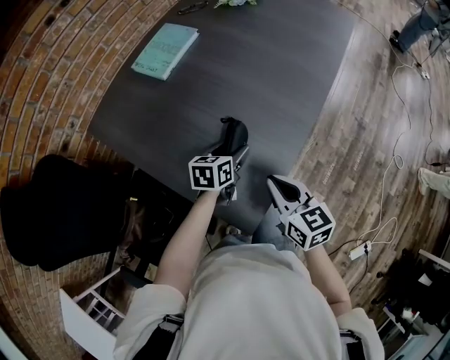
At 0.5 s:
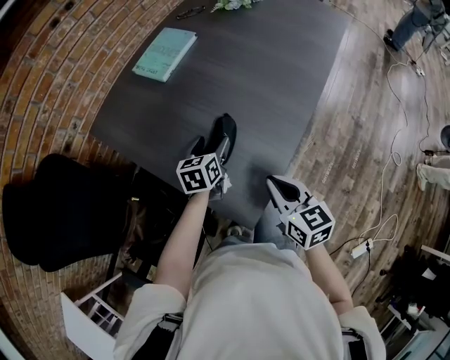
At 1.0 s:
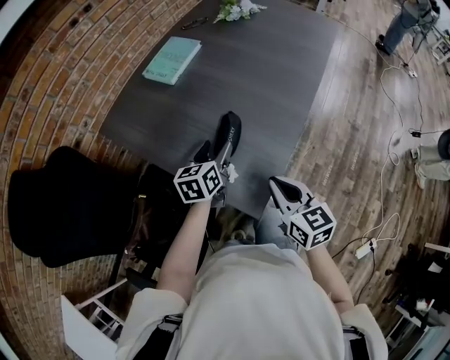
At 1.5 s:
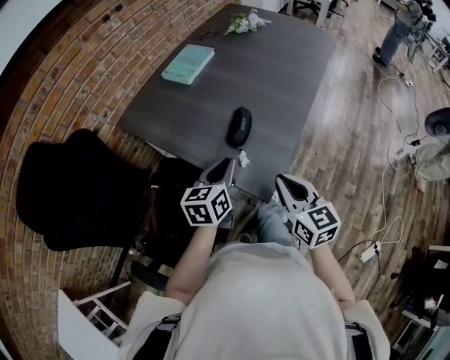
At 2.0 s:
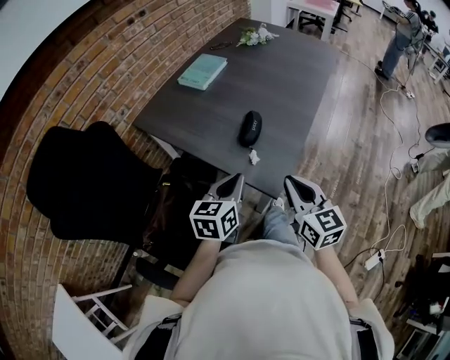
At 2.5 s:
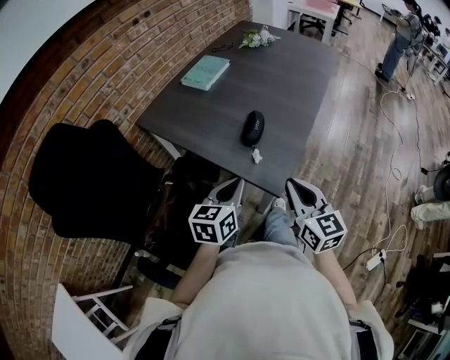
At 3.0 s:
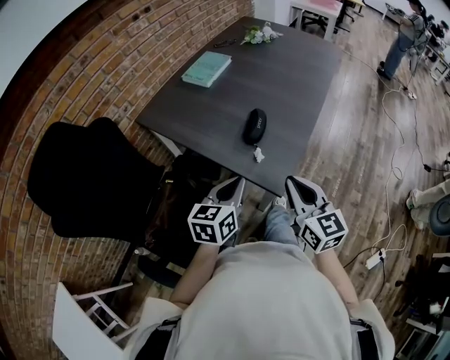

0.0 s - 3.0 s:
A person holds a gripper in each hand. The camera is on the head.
0.0 s - 1.5 s: The left gripper shifts approximately 25 cm backward, upward and to the left, swivels some 20 degrees, and closes its fingers; the right gripper is displaced backward and upward by some 15 cm.
1.5 s - 3.0 s: The right gripper shifts some 5 cm backward. The left gripper goes approximately 10 cm backward.

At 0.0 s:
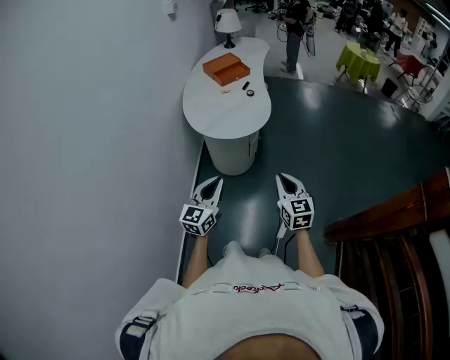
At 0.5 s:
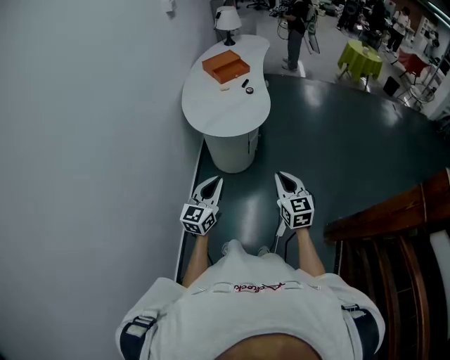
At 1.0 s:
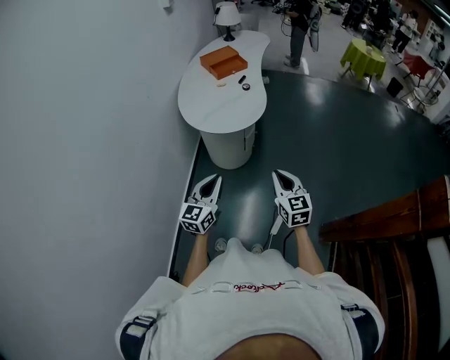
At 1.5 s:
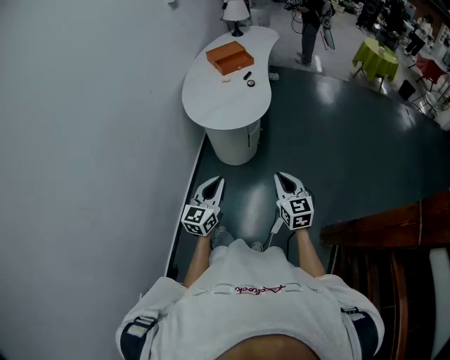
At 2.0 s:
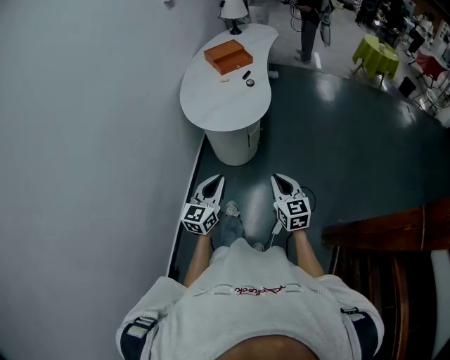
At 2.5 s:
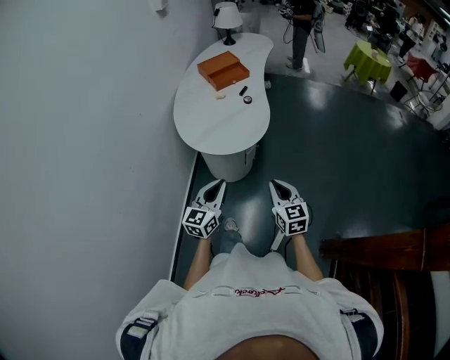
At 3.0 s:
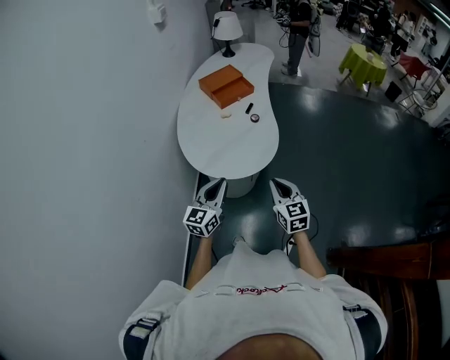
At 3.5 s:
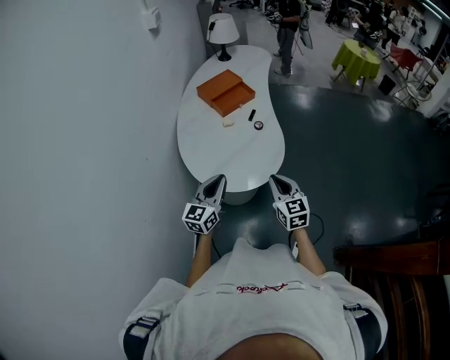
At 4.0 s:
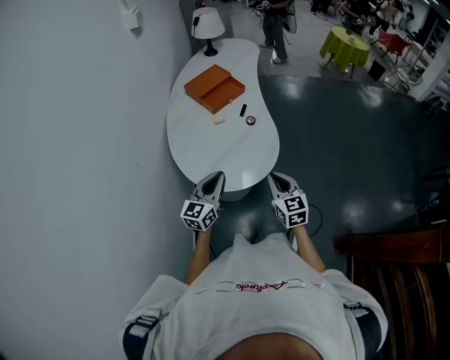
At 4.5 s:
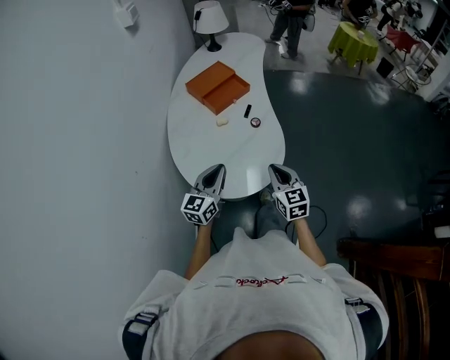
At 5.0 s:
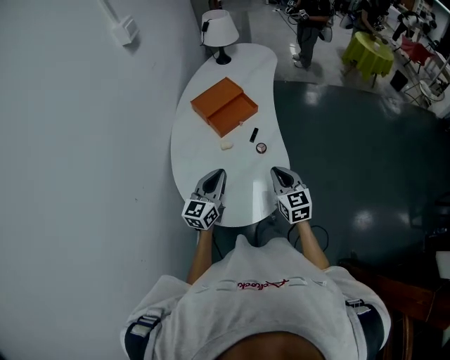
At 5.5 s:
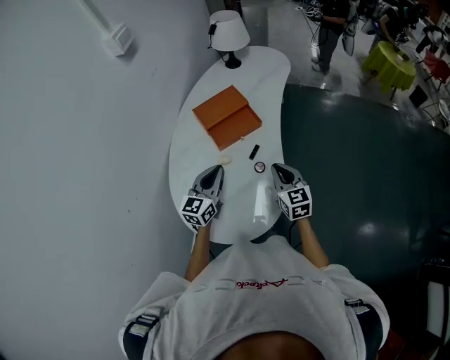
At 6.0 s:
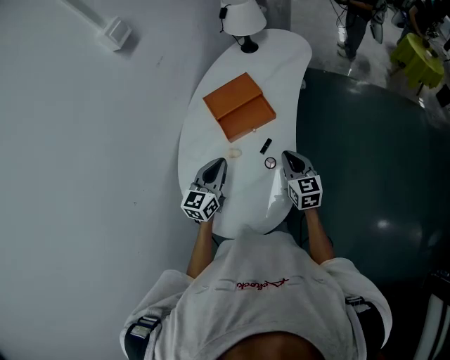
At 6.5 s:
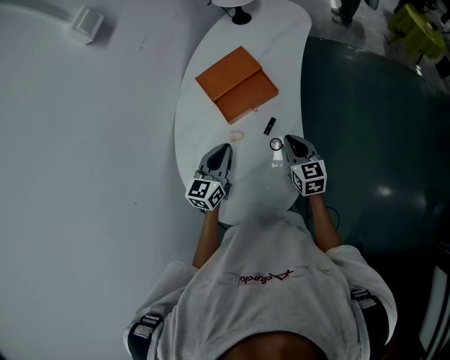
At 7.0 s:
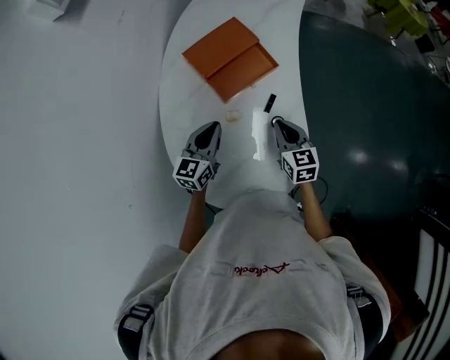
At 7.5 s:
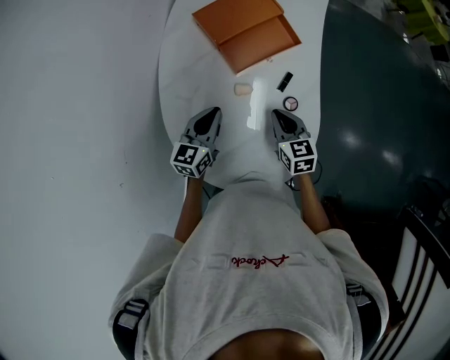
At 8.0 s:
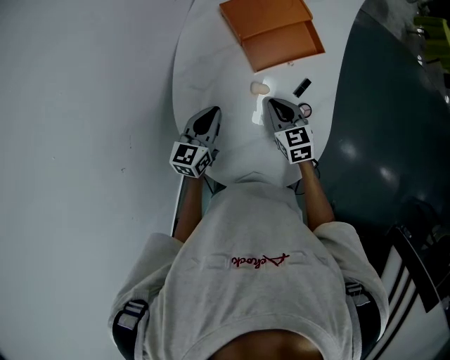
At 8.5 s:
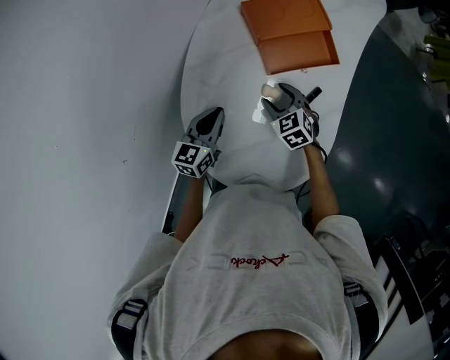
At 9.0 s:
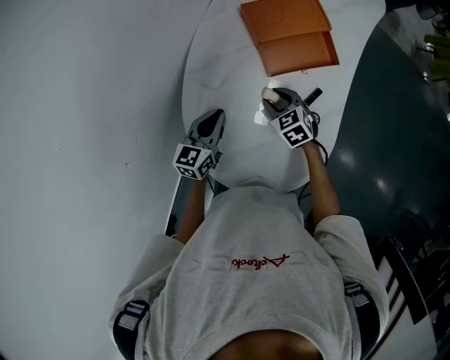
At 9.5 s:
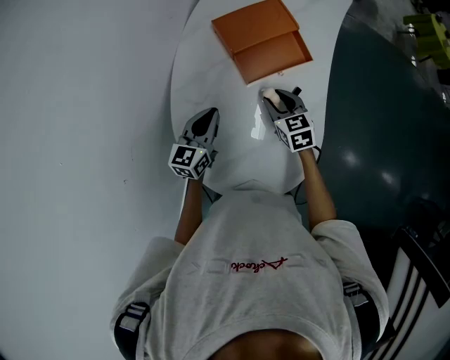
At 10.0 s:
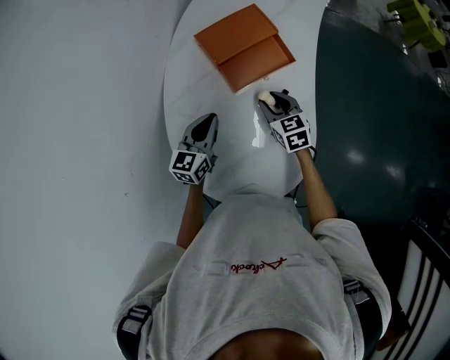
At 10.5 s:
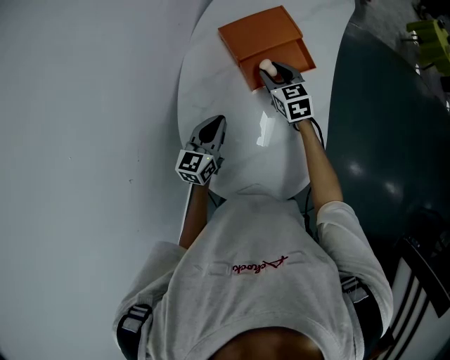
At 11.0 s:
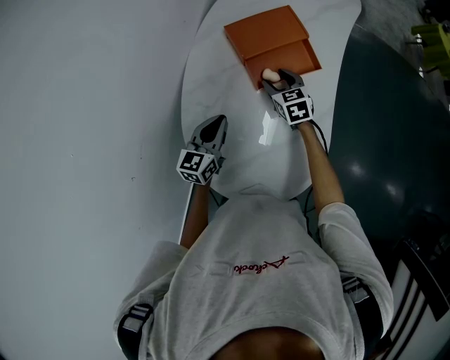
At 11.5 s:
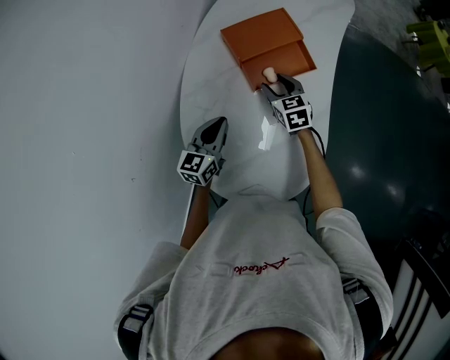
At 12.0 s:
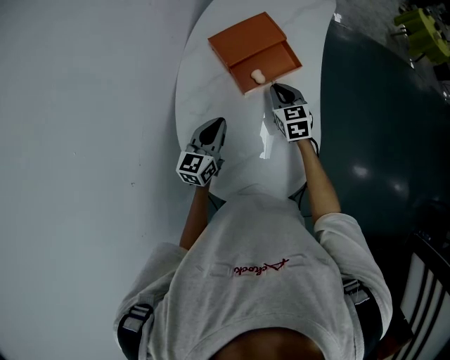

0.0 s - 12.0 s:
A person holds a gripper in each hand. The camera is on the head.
0.0 s - 2.0 s: Both grippers move to the right, about 5 cm.
2.0 s - 4.0 s: Both grippers travel together forward and to the left, about 35 cm.
4.0 s - 6.0 s: Both grippers move forward, about 35 cm. The left gripper swivels approximately 20 degrees.
6.0 s - 8.0 s: The left gripper travels downward and to the left by roughly 20 cm, while the right gripper moves to the left and downward, about 25 cm, and turns by roughly 20 degrees.
8.0 s - 10.0 s: The right gripper shifts approximately 5 cm to the right, and opens up; the left gripper ends up some 5 cm from where it was.
10.0 s - 12.0 s: The right gripper closes up.

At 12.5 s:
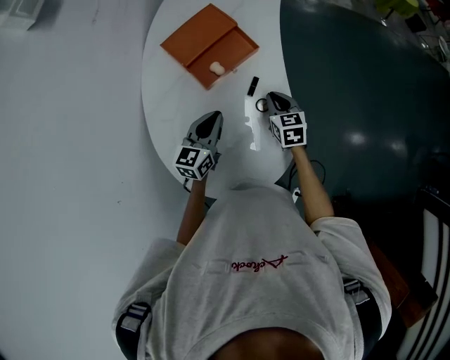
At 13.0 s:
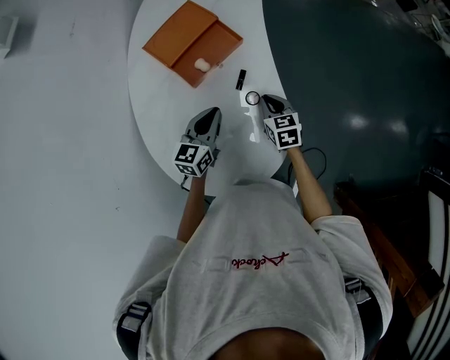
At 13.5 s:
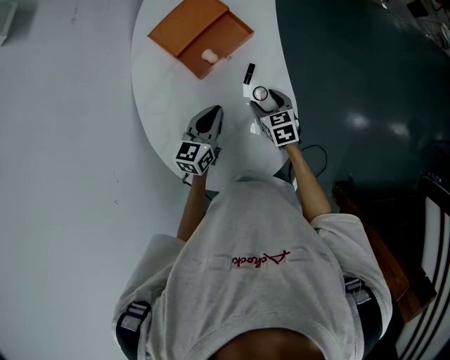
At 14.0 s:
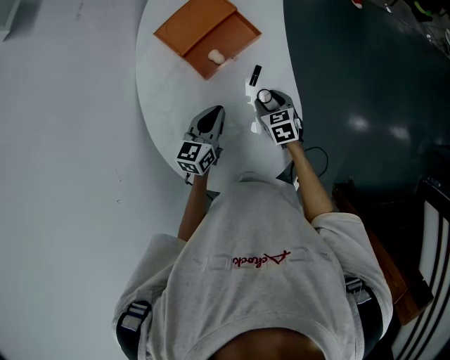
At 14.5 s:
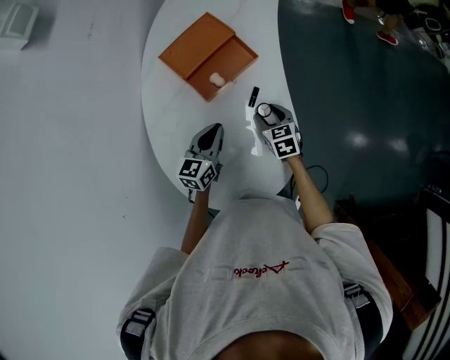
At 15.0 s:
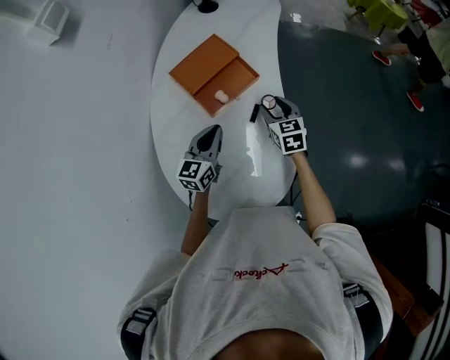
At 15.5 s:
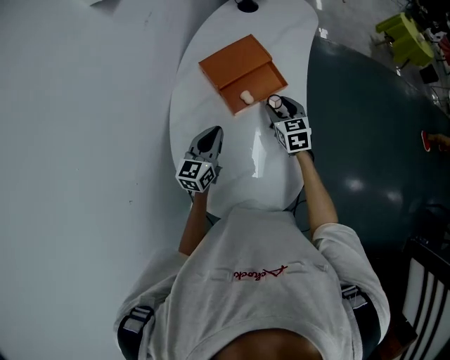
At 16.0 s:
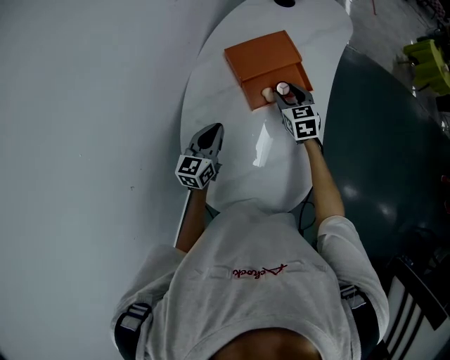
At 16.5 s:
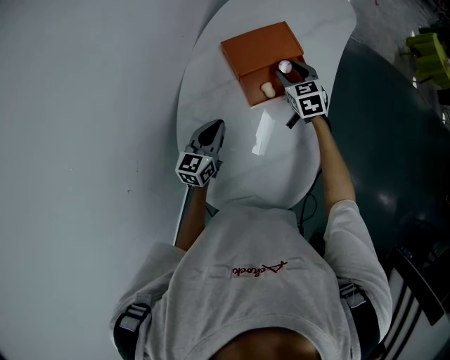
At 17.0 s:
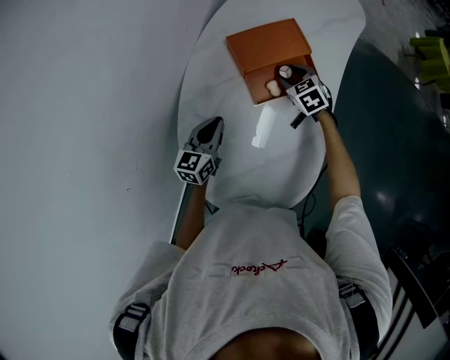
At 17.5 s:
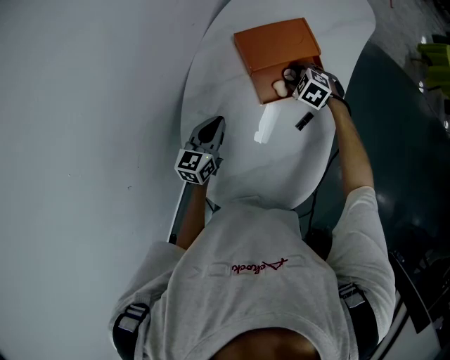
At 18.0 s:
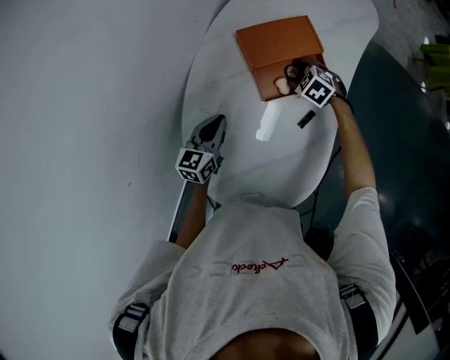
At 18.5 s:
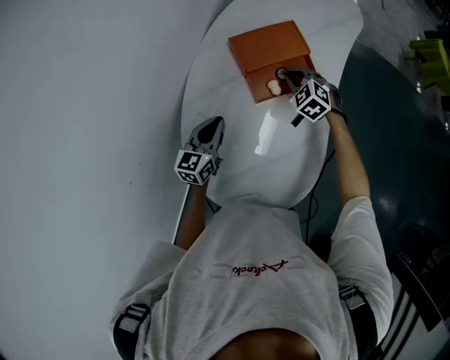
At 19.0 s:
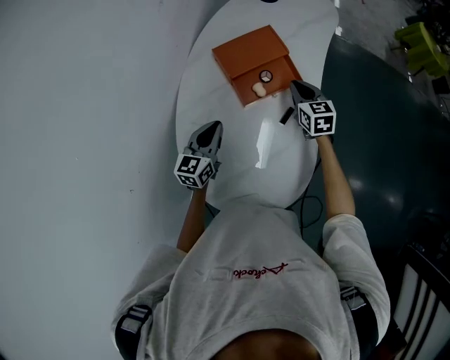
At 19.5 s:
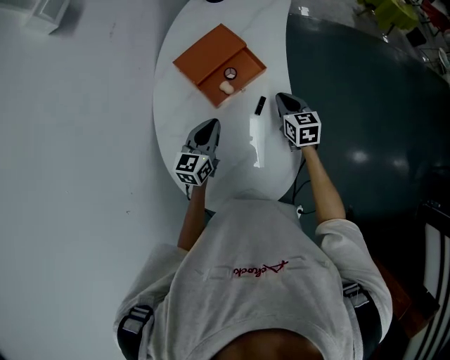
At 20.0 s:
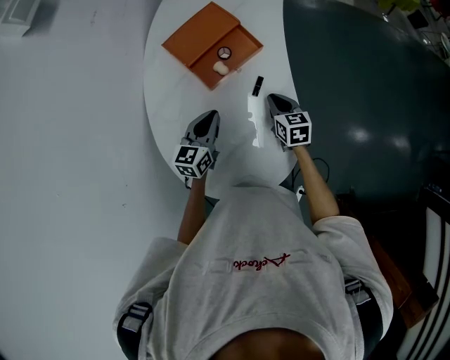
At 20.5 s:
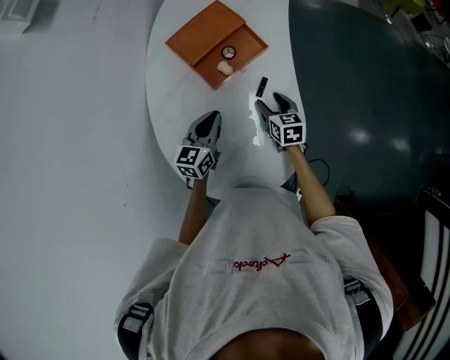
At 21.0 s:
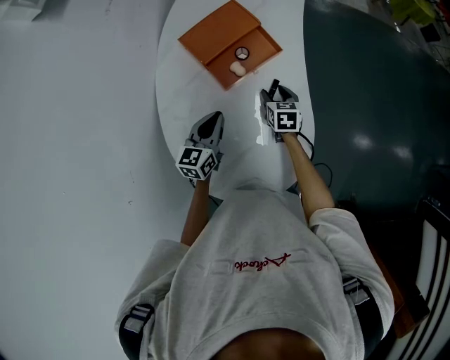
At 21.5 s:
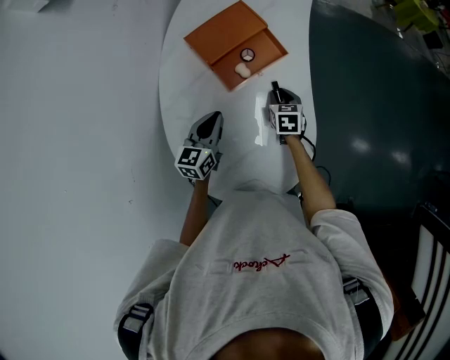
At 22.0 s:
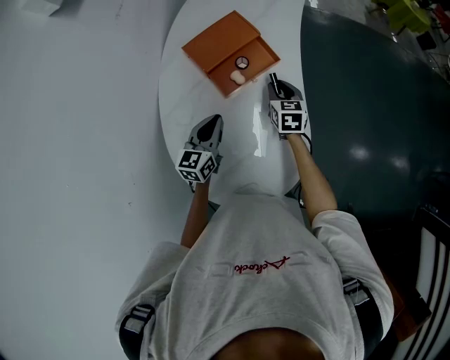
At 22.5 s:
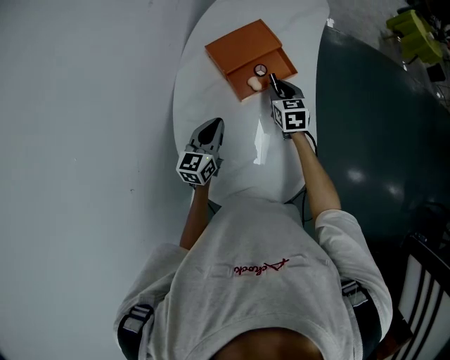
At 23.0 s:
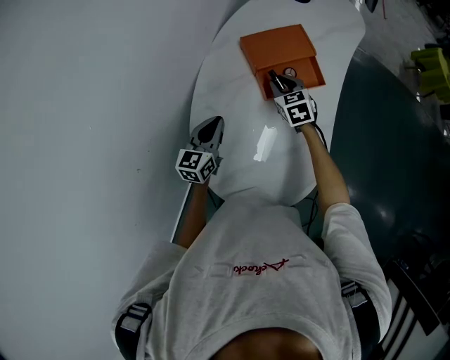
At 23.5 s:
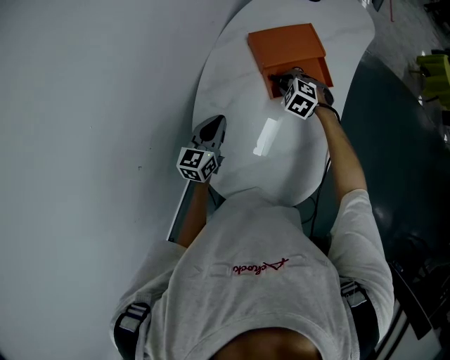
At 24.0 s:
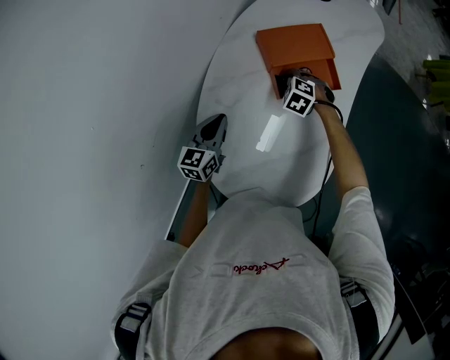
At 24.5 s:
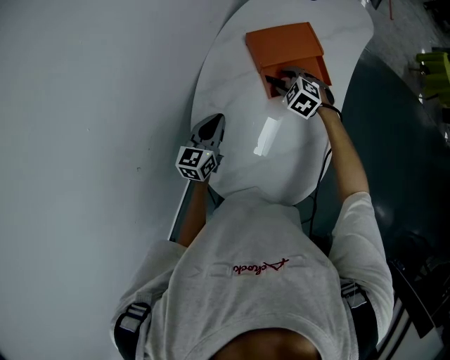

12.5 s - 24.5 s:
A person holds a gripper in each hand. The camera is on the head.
12.5 s - 14.5 s: The right gripper opens up.
14.5 s - 16.5 s: The right gripper shifts some 25 cm forward and to the left, and turns by about 20 degrees; the left gripper goes roughly 10 cm to the left.
16.5 s - 18.5 s: The right gripper travels downward and back again, roughly 10 cm each way, changes its angle by roughly 40 degrees, and closes up.
18.5 s - 20.5 s: The right gripper is displaced backward and to the right by about 20 cm, rotates around the line of its fingers by approximately 70 degrees, clockwise from behind, and opens. Meanwhile the left gripper shifts approximately 10 cm to the right.
20.5 s - 22.5 s: The left gripper goes approximately 5 cm to the left; the right gripper shifts about 15 cm forward, upward and to the left, and closes up.
22.5 s - 24.5 s: The left gripper heads to the left, covering some 10 cm, while the right gripper goes about 10 cm to the left and downward, twists roughly 60 degrees counterclockwise, seen from behind, and opens.
